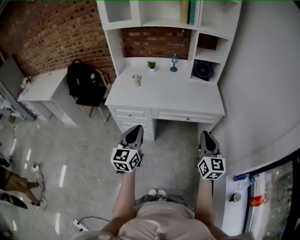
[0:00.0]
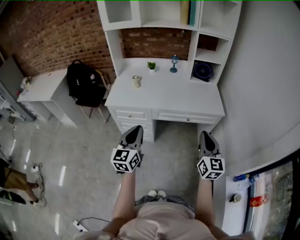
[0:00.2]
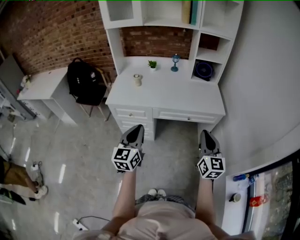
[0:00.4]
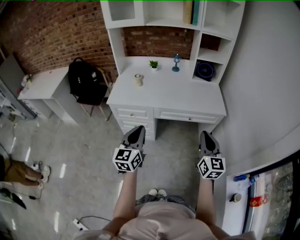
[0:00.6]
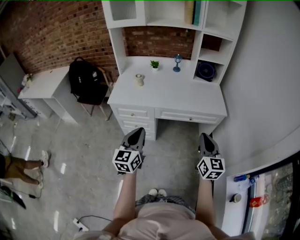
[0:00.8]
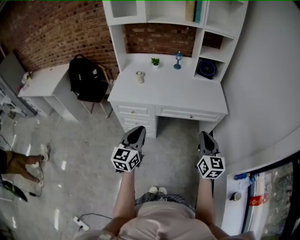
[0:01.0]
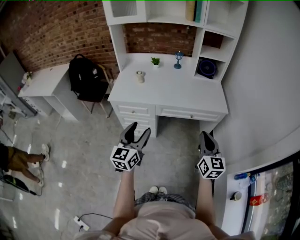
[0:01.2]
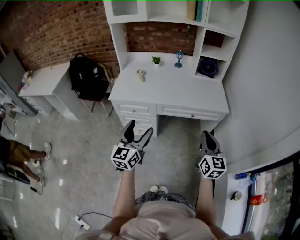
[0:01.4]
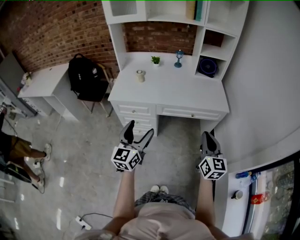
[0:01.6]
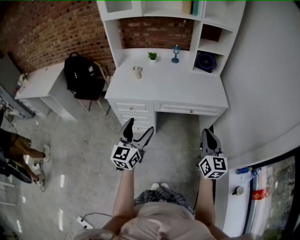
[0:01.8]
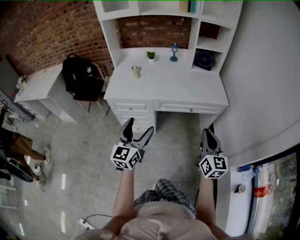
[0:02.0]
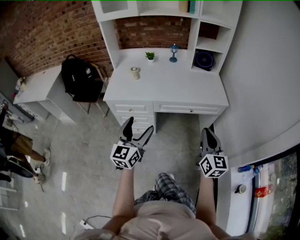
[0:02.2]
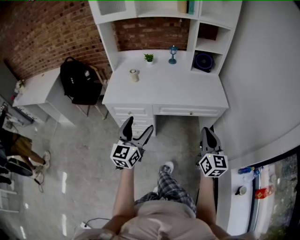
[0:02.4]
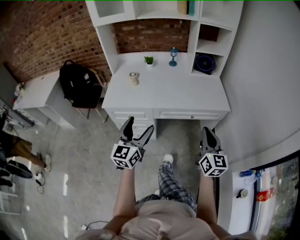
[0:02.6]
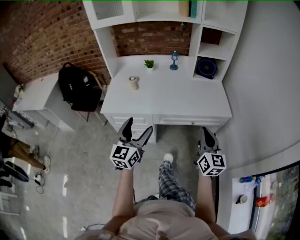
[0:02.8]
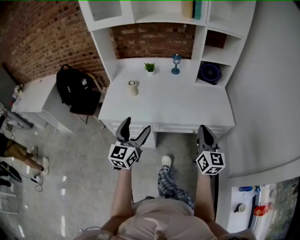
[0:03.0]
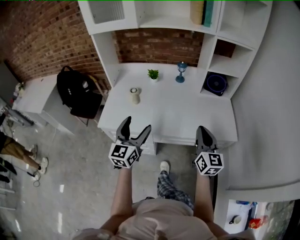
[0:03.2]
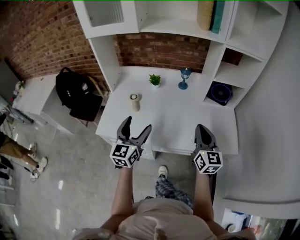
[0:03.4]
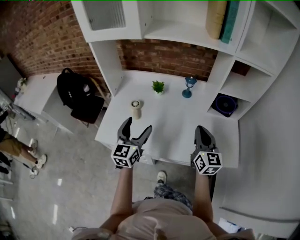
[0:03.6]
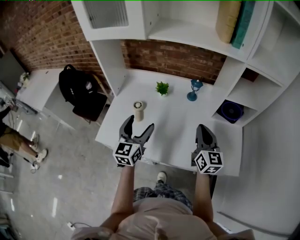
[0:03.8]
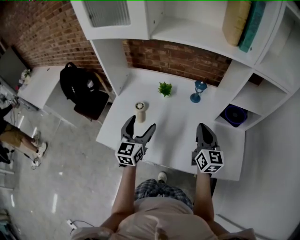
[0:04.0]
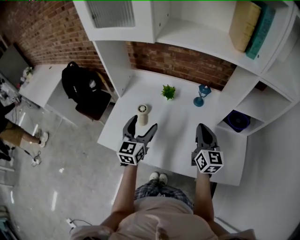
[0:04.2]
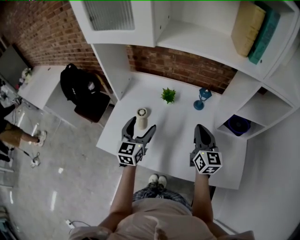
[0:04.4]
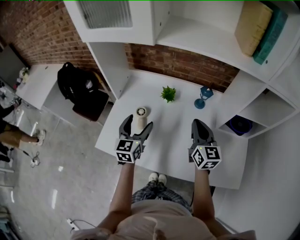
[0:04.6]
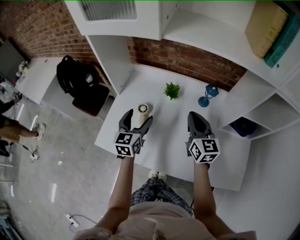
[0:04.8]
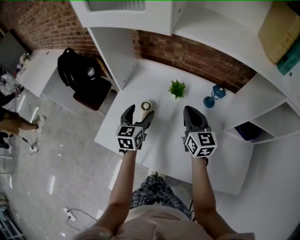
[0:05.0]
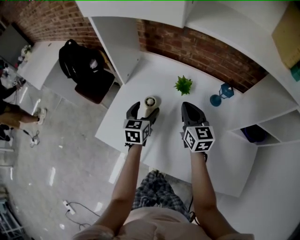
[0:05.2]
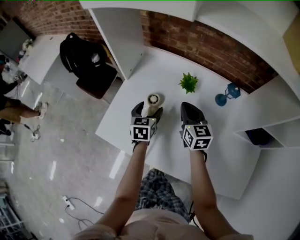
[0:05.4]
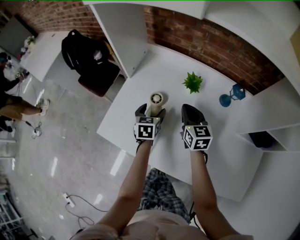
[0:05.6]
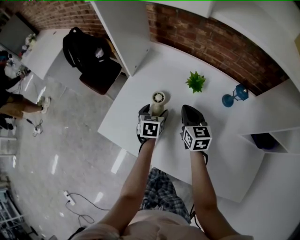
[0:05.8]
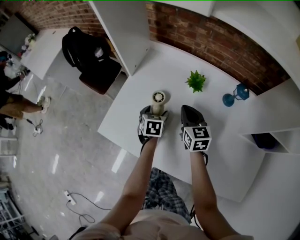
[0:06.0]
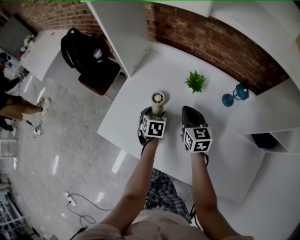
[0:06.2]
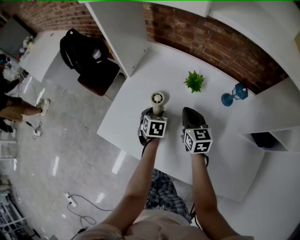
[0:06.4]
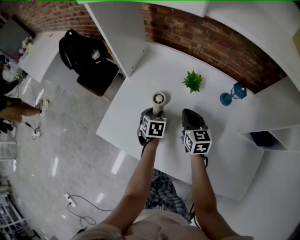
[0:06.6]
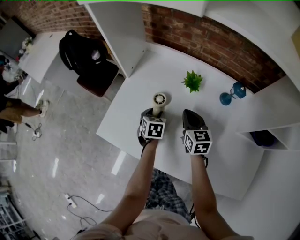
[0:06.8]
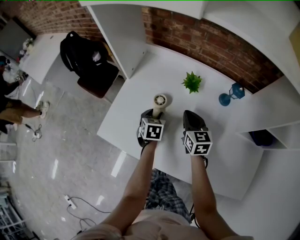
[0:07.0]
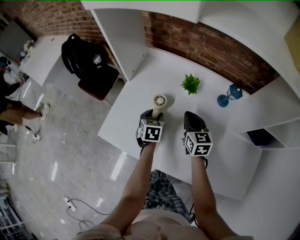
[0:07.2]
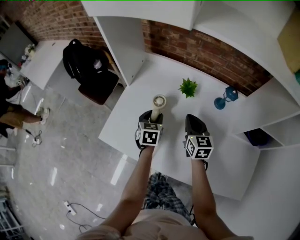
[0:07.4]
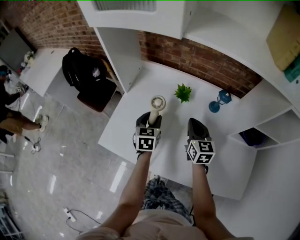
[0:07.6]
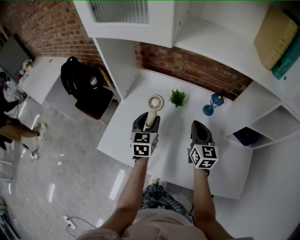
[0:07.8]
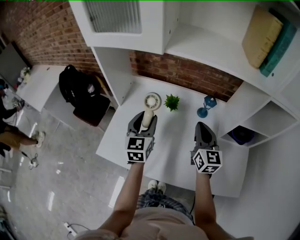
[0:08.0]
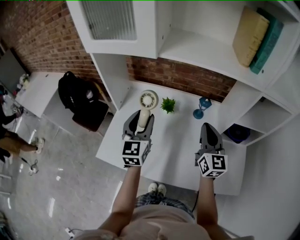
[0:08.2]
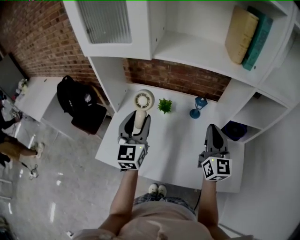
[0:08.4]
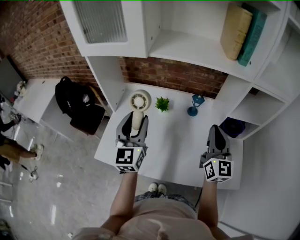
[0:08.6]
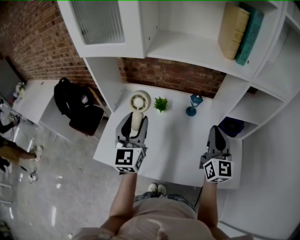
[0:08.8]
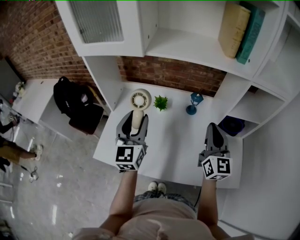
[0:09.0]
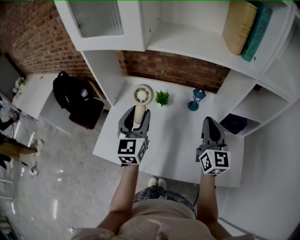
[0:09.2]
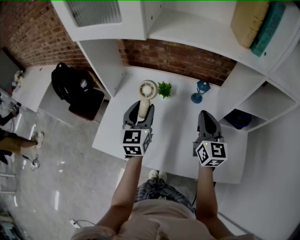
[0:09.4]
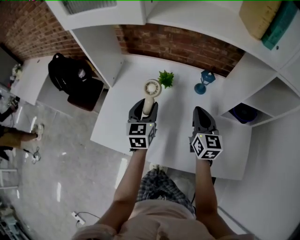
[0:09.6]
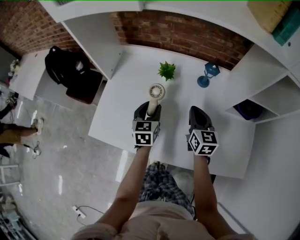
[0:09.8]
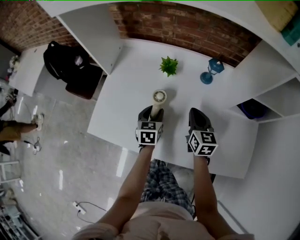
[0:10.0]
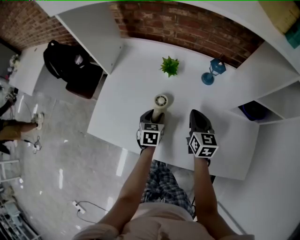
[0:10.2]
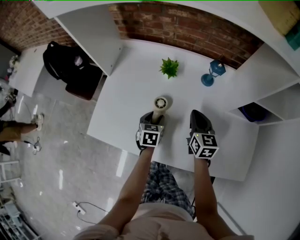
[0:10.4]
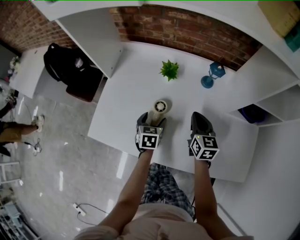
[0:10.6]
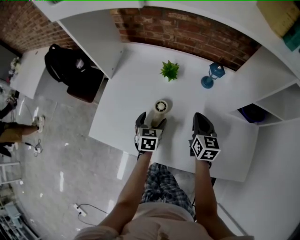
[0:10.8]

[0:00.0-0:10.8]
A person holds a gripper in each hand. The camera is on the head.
0.0 to 1.6 s: The left gripper opens.
1.6 to 3.0 s: Both grippers travel together forward, roughly 20 cm.
3.0 to 4.6 s: The two grippers travel together, forward, approximately 50 cm. The left gripper swivels roughly 20 degrees; the right gripper rotates approximately 20 degrees.
4.6 to 6.2 s: The left gripper heads downward, covering some 25 cm, and tilts its fingers roughly 40 degrees downward. Meanwhile the right gripper moves downward, forward and to the left, some 25 cm, and swivels about 20 degrees.
6.2 to 7.8 s: The right gripper shifts approximately 20 cm upward, to the right and backward; the left gripper moves upward, roughly 20 cm, and angles its fingers upward, by some 30 degrees.
7.8 to 9.2 s: The left gripper is displaced upward by approximately 15 cm, and turns by some 20 degrees. The right gripper heads upward, to the right and backward, covering some 20 cm.
9.2 to 10.8 s: Both grippers move downward, about 30 cm. The right gripper rotates some 30 degrees. The left gripper points its fingers some 40 degrees further downward, and opens up.

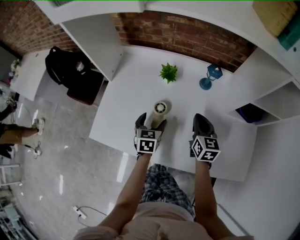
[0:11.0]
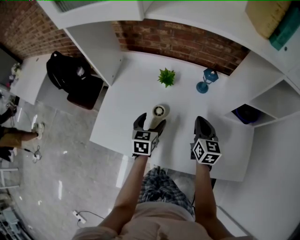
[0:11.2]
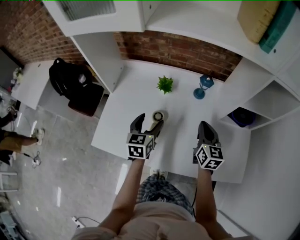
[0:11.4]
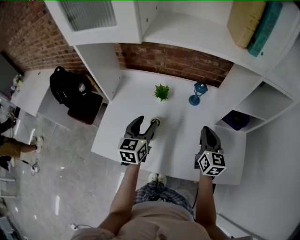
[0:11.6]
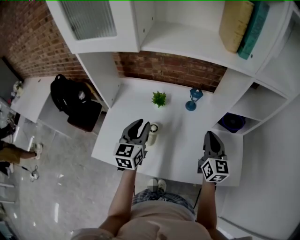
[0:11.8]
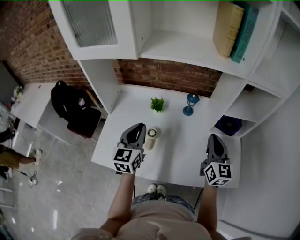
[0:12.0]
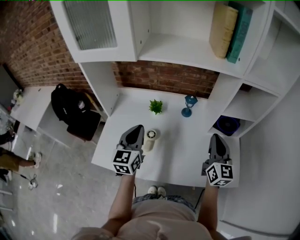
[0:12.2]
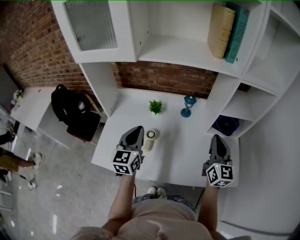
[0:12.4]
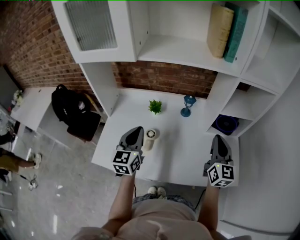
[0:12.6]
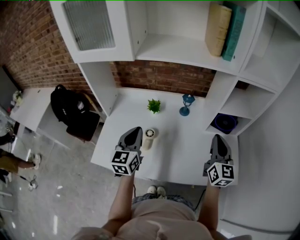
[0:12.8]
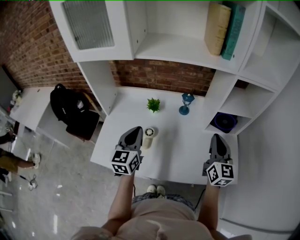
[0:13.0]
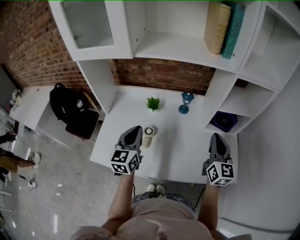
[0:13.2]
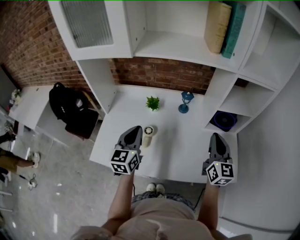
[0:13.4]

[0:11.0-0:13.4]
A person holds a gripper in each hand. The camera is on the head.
11.0 to 12.2 s: The right gripper heads upward, to the right and backward, covering approximately 25 cm, and swivels approximately 30 degrees; the left gripper moves upward, some 25 cm, points its fingers some 30 degrees further upward, and closes.
12.2 to 13.4 s: The grippers move only a little.

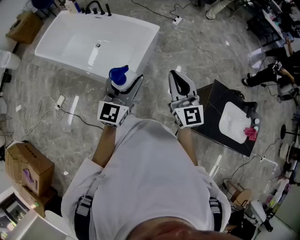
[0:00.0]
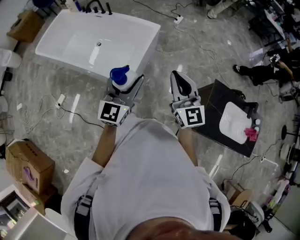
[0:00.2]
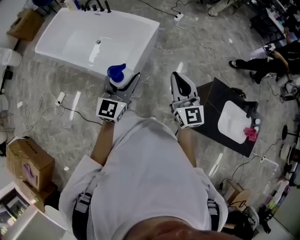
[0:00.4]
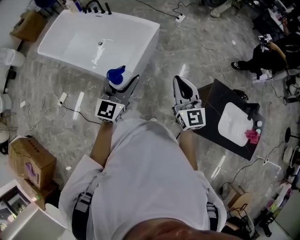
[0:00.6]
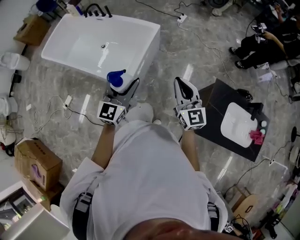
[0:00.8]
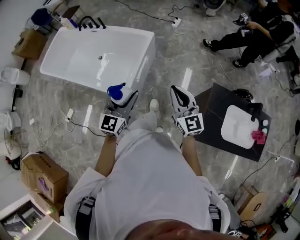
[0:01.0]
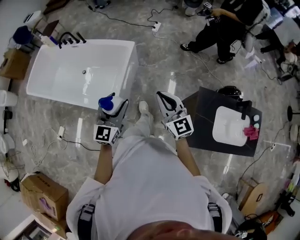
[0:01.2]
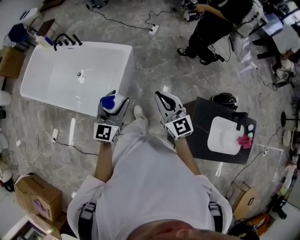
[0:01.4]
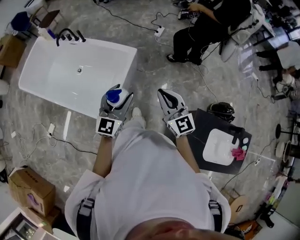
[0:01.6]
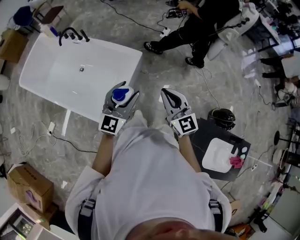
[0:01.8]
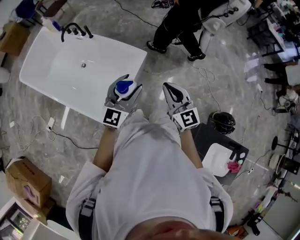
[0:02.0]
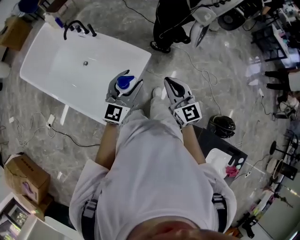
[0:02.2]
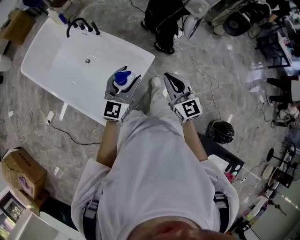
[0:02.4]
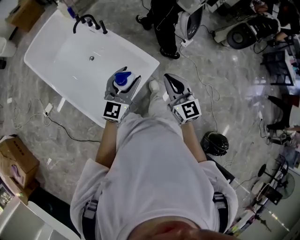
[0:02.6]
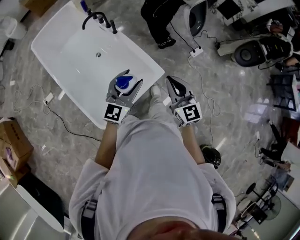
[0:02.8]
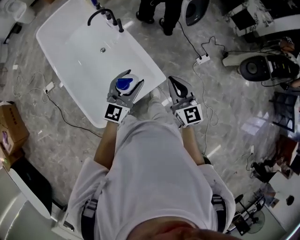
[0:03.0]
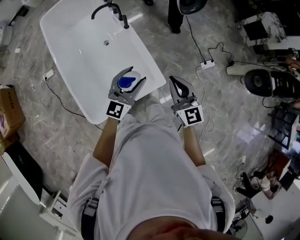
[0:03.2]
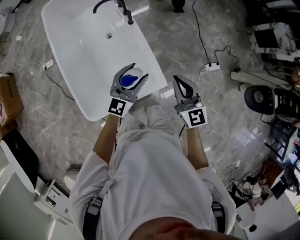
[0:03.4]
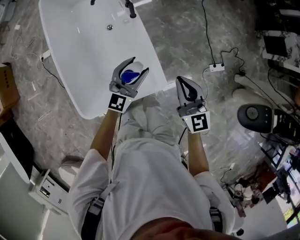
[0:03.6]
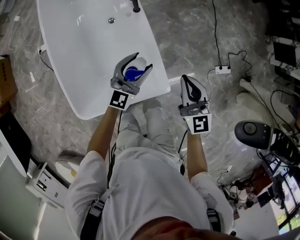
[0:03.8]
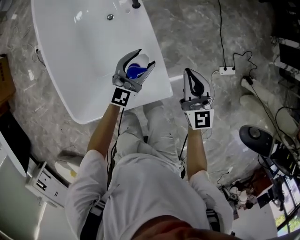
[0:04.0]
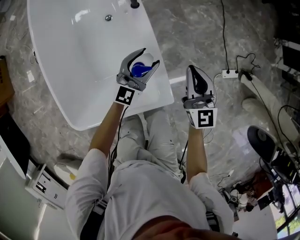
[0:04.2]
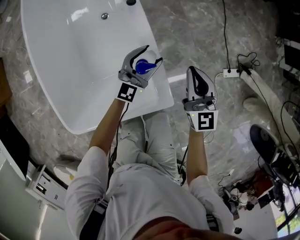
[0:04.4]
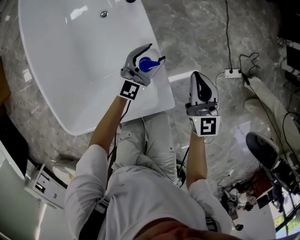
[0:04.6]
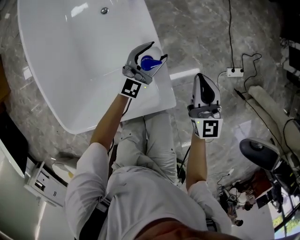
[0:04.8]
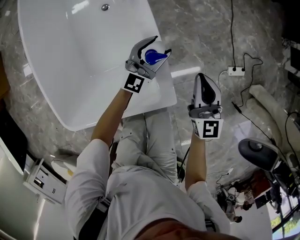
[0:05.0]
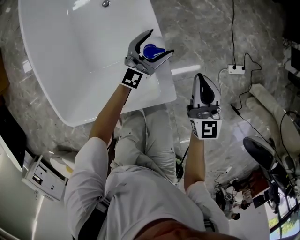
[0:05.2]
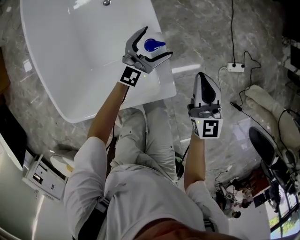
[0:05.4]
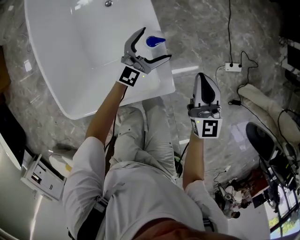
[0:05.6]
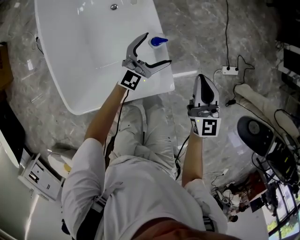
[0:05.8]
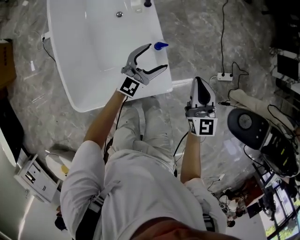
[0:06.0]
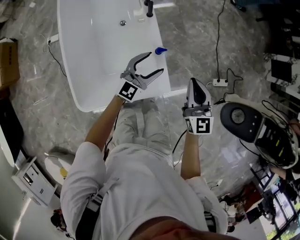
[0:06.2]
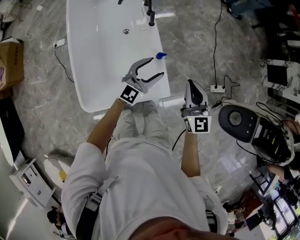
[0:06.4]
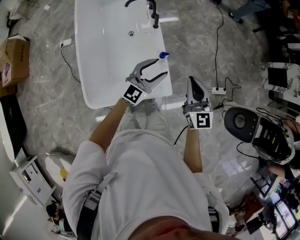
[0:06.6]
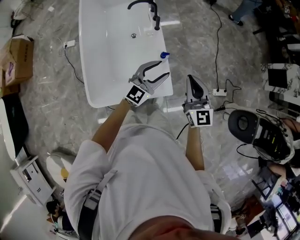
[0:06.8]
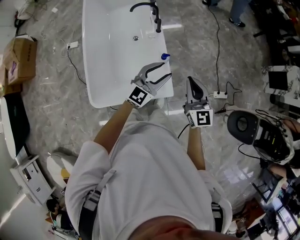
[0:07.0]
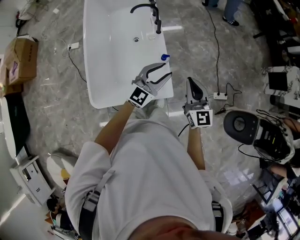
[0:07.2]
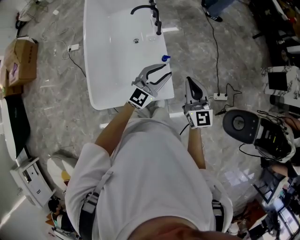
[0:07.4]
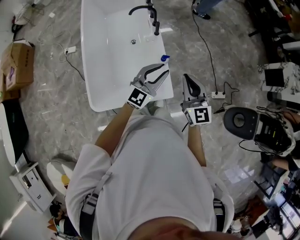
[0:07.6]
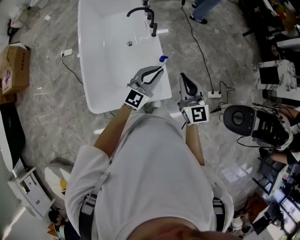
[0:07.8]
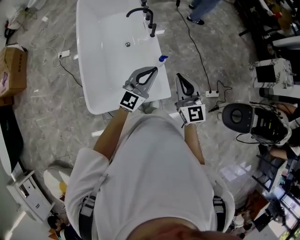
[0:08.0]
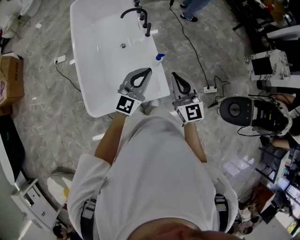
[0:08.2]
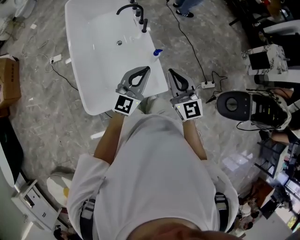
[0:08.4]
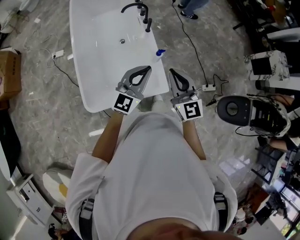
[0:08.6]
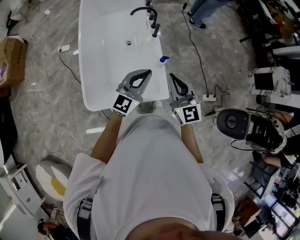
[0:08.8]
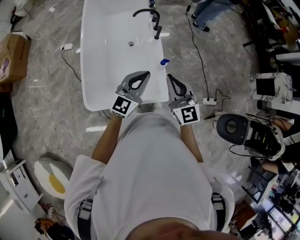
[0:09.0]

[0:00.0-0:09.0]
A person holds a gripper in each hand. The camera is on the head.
0.0 to 1.6 s: Both grippers move forward and to the right, roughly 25 cm.
1.6 to 3.0 s: The right gripper changes place by about 40 cm, and turns by some 30 degrees; the left gripper changes place by approximately 40 cm, and turns by approximately 30 degrees.
3.0 to 4.4 s: The grippers both shift downward and forward by approximately 40 cm.
4.4 to 6.0 s: The two grippers go about 15 cm upward and backward.
6.0 to 7.6 s: The left gripper heads upward and backward, covering some 25 cm, and closes its fingers. Meanwhile the right gripper moves upward, approximately 20 cm.
7.6 to 9.0 s: Both grippers travel together to the left, approximately 10 cm.

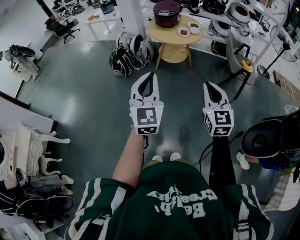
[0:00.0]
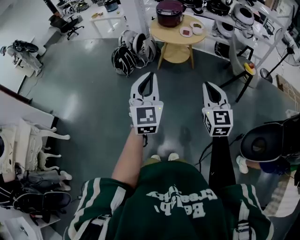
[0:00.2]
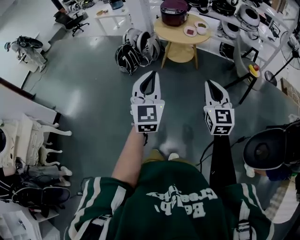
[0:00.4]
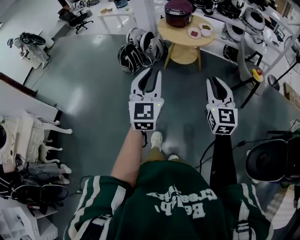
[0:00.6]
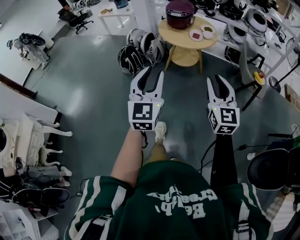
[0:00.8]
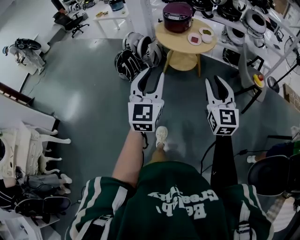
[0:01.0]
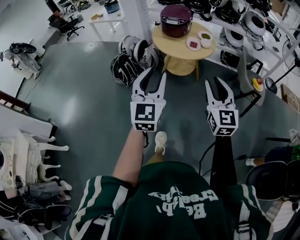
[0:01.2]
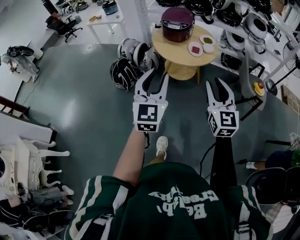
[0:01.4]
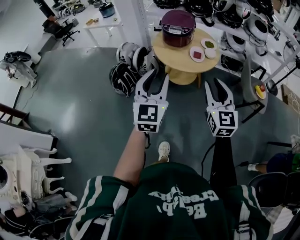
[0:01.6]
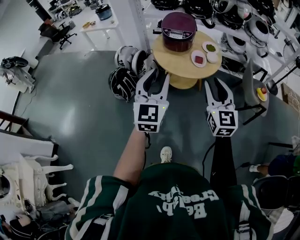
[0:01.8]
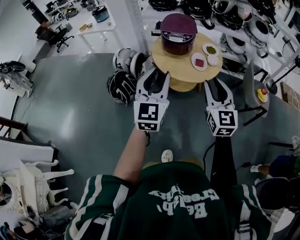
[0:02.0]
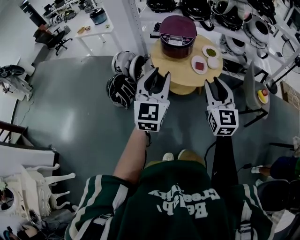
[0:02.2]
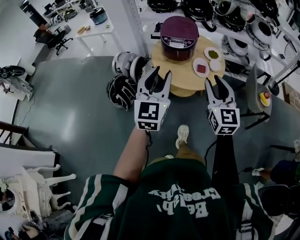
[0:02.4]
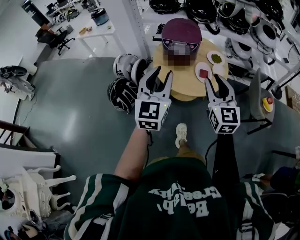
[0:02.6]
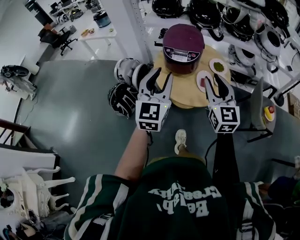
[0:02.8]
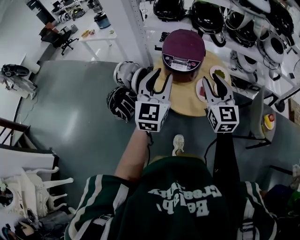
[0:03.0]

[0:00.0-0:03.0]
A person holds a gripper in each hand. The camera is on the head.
0.0 to 1.6 s: The two grippers go approximately 35 cm forward. The left gripper opens. The right gripper opens its fingers.
1.6 to 3.0 s: Both grippers travel together forward, some 35 cm.
